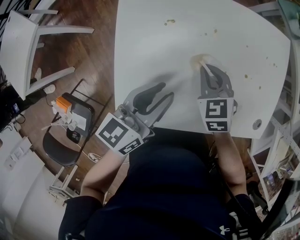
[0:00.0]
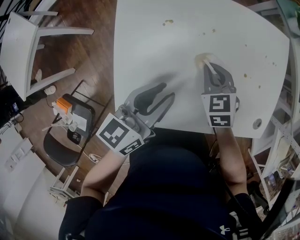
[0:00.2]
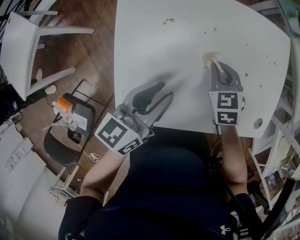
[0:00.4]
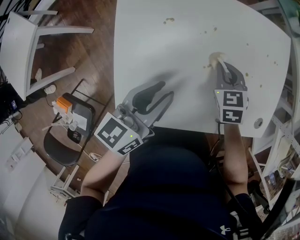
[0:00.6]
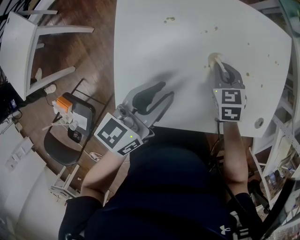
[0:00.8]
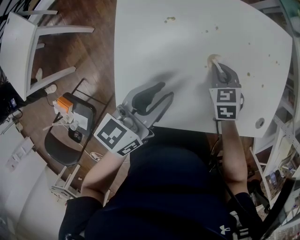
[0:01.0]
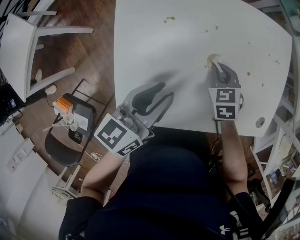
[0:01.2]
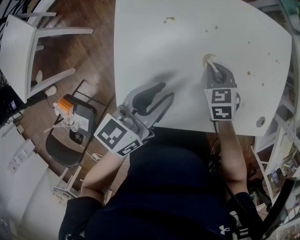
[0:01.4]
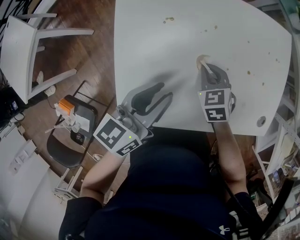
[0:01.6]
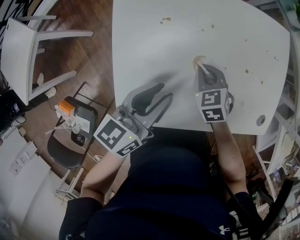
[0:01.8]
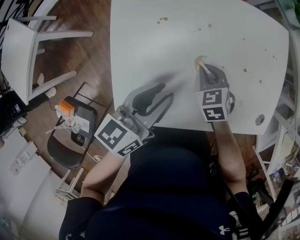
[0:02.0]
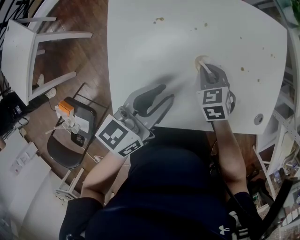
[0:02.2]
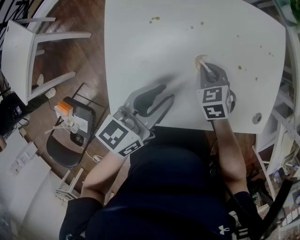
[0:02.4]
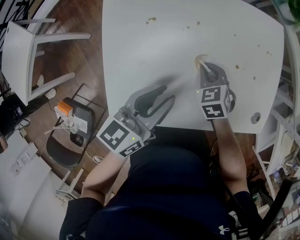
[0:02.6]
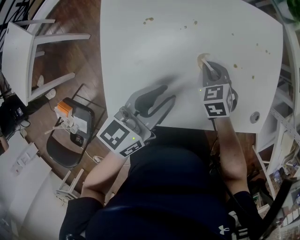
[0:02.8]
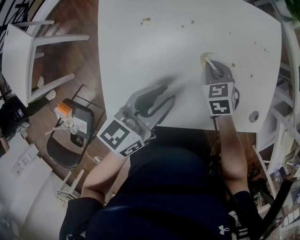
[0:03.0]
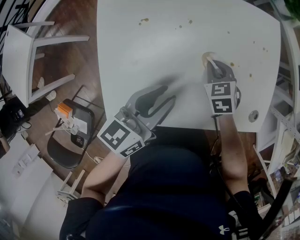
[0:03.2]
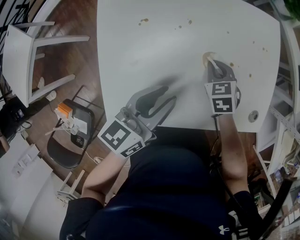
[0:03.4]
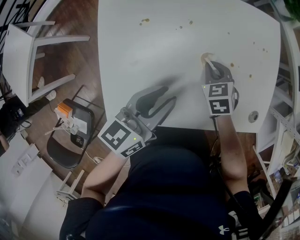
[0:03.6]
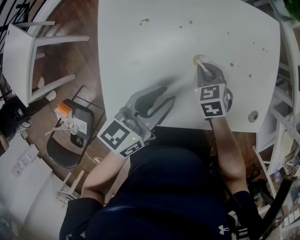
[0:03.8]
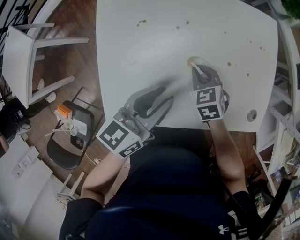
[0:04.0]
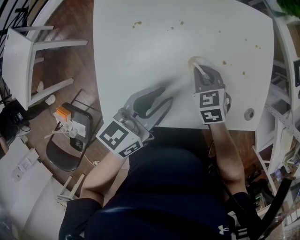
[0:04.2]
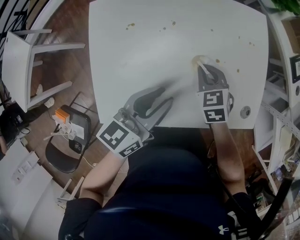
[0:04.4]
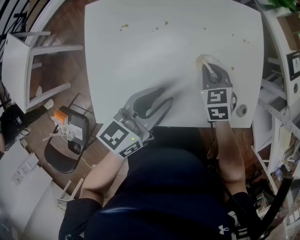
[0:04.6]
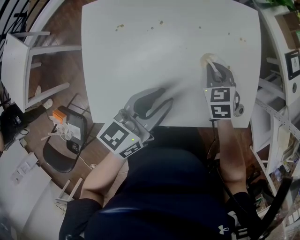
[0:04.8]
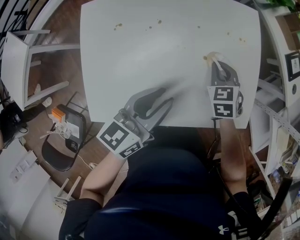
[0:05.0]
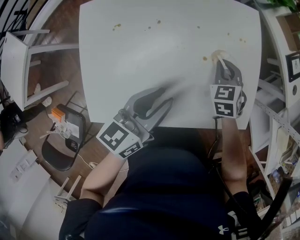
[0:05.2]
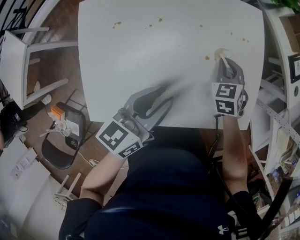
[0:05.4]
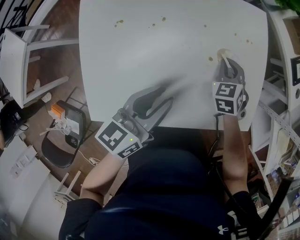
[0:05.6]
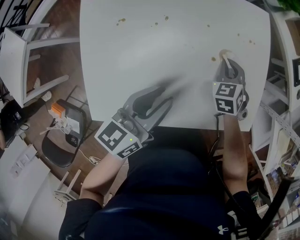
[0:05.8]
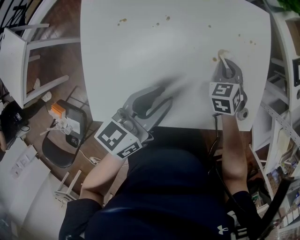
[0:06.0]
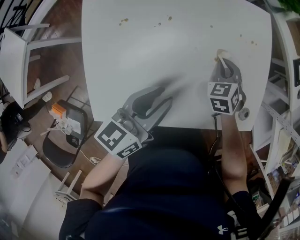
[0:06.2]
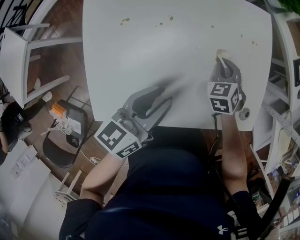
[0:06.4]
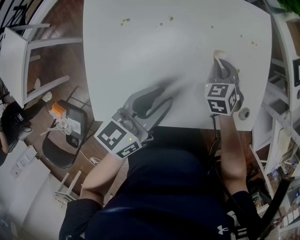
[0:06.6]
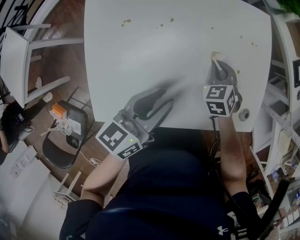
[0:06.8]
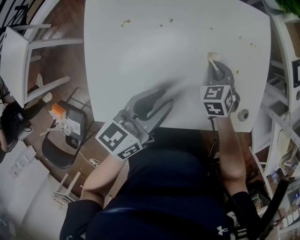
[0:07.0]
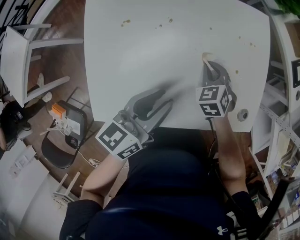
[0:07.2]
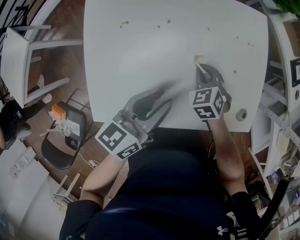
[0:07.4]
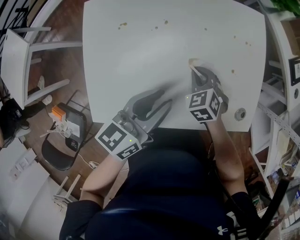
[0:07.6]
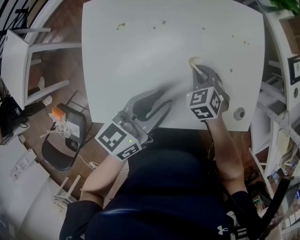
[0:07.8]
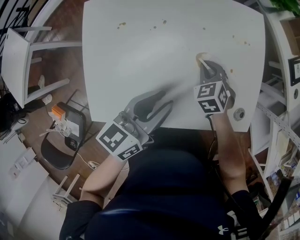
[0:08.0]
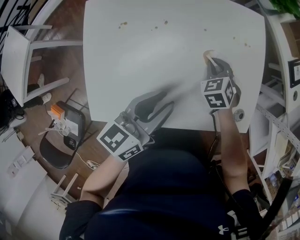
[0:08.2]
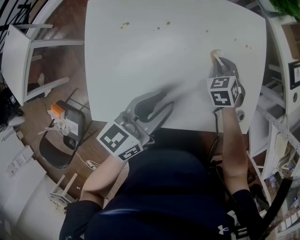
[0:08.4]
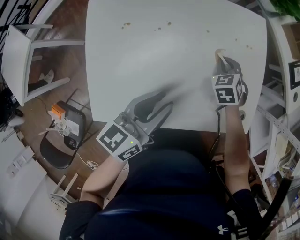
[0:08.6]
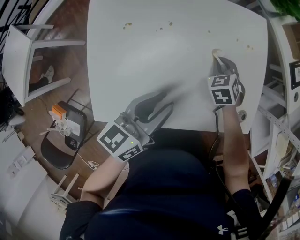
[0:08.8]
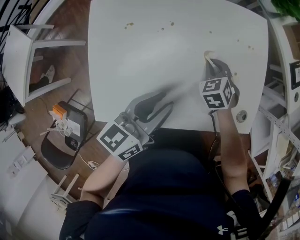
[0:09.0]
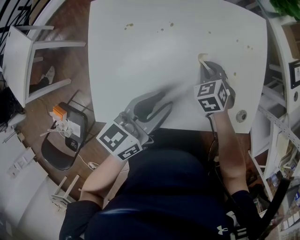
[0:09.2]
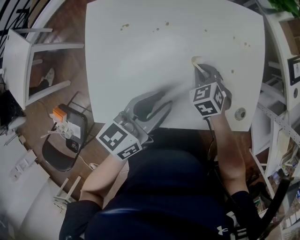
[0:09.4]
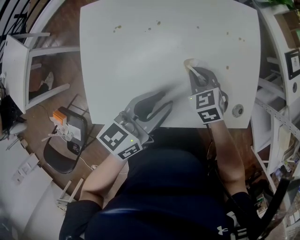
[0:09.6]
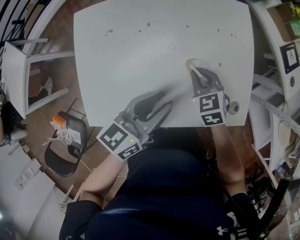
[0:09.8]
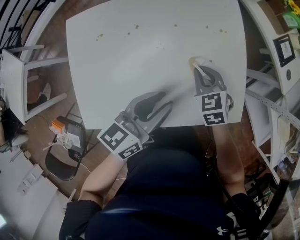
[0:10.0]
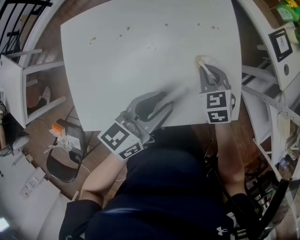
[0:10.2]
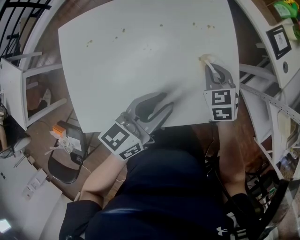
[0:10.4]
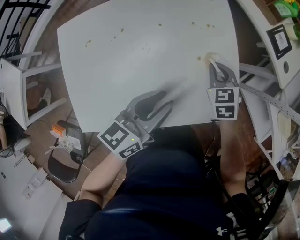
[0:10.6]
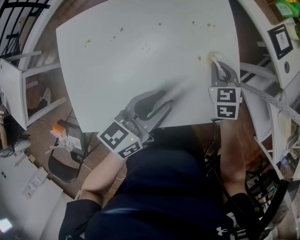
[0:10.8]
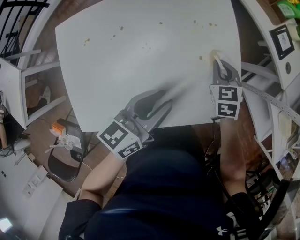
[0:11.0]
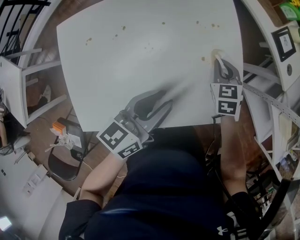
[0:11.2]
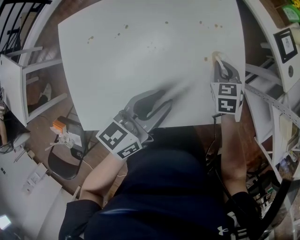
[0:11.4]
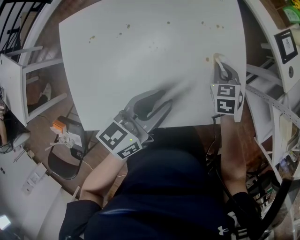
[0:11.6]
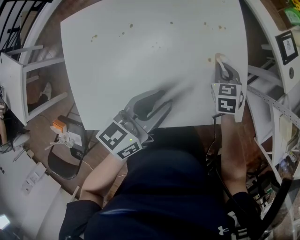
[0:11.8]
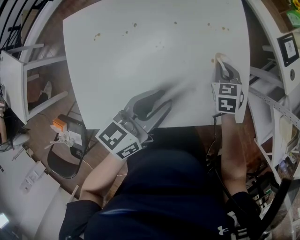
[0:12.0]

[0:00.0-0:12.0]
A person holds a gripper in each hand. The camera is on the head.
0:00.0 to 0:01.6: The right gripper travels downward by approximately 5 cm.
0:01.6 to 0:03.0: The two grippers go approximately 10 cm to the right.
0:03.0 to 0:04.4: The grippers make only small movements.
0:04.4 to 0:06.0: The right gripper heads to the right and forward, covering some 10 cm.
0:06.0 to 0:07.6: The right gripper is displaced backward and to the left by roughly 10 cm.
0:07.6 to 0:09.0: The right gripper moves forward, about 5 cm.
0:09.0 to 0:10.4: Both grippers travel together to the right, about 15 cm. The right gripper changes its angle by about 20 degrees.
0:10.4 to 0:12.0: The grippers stay close to where they were, moving slightly.

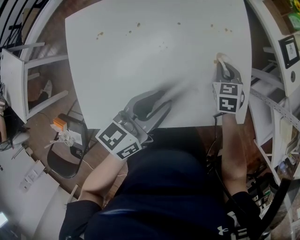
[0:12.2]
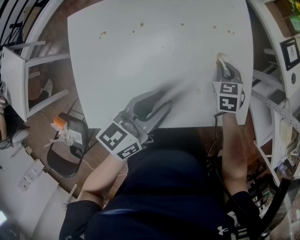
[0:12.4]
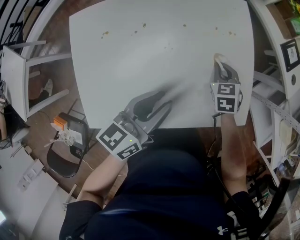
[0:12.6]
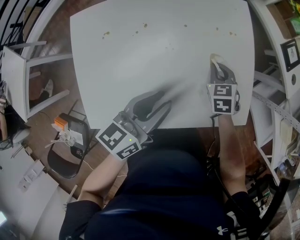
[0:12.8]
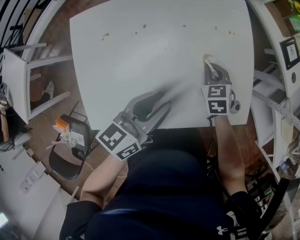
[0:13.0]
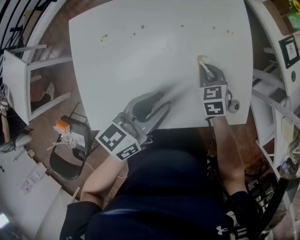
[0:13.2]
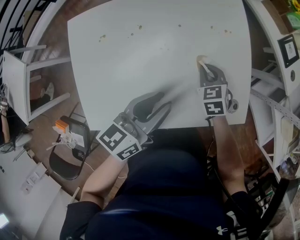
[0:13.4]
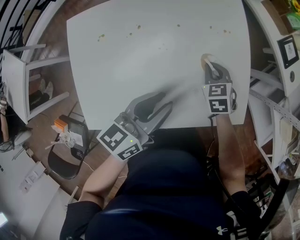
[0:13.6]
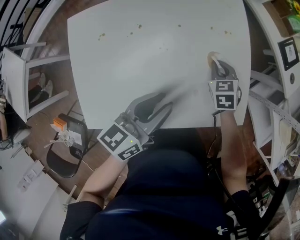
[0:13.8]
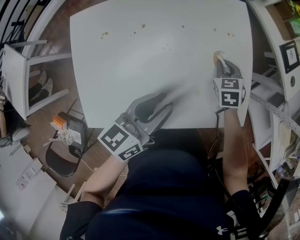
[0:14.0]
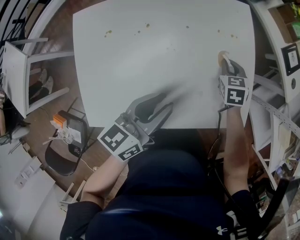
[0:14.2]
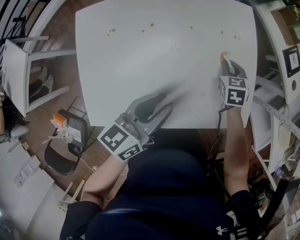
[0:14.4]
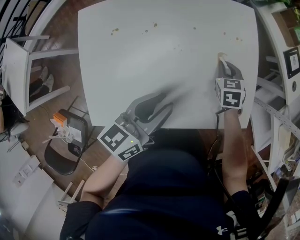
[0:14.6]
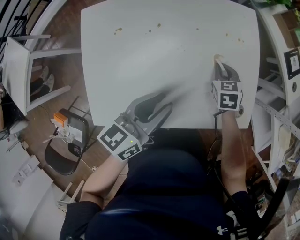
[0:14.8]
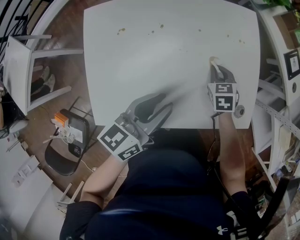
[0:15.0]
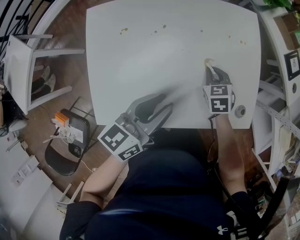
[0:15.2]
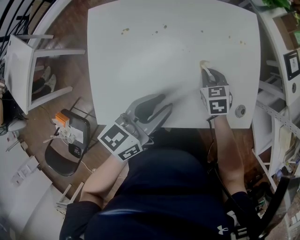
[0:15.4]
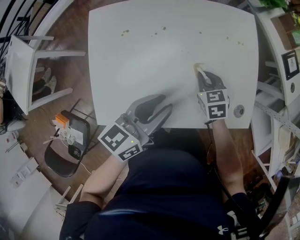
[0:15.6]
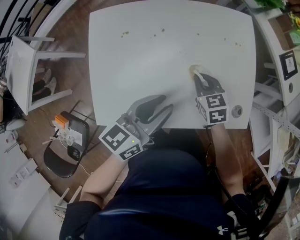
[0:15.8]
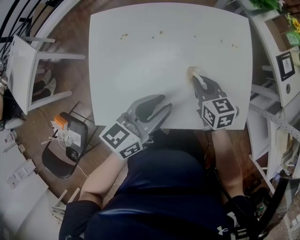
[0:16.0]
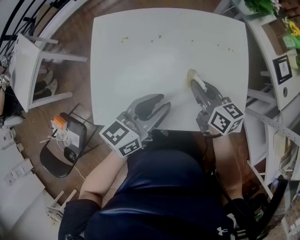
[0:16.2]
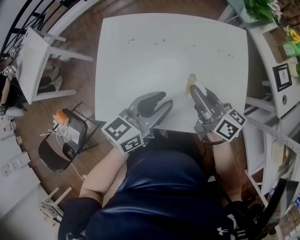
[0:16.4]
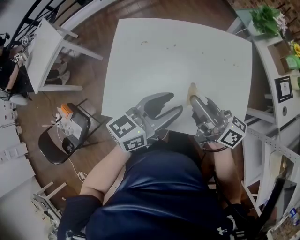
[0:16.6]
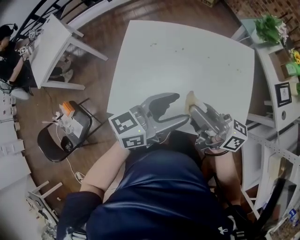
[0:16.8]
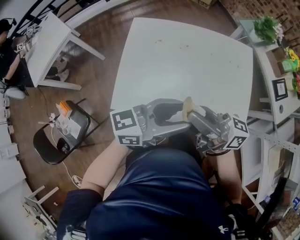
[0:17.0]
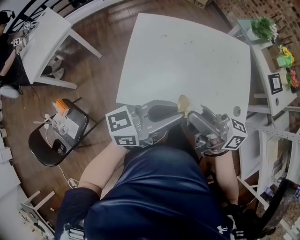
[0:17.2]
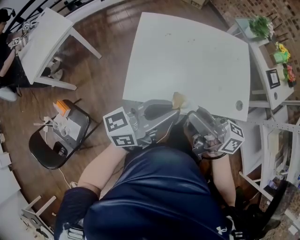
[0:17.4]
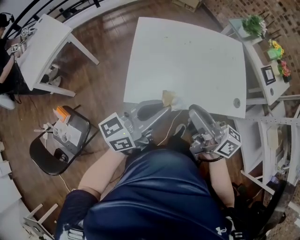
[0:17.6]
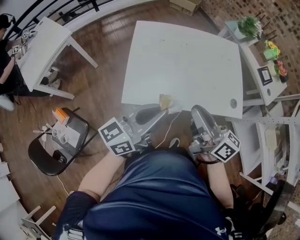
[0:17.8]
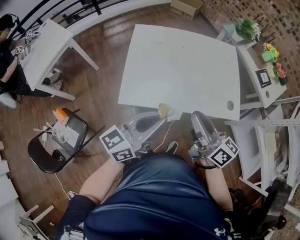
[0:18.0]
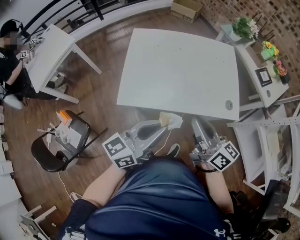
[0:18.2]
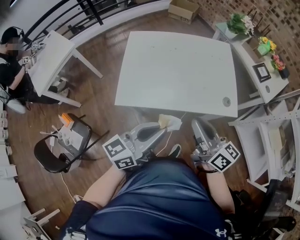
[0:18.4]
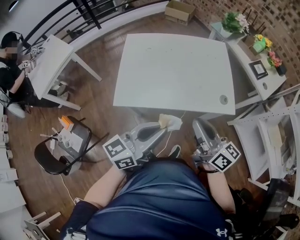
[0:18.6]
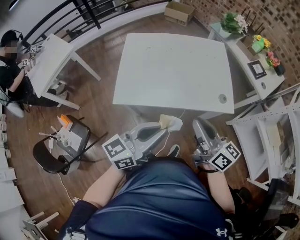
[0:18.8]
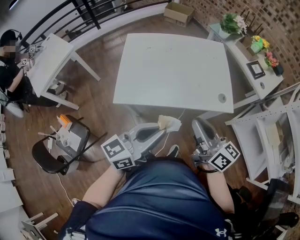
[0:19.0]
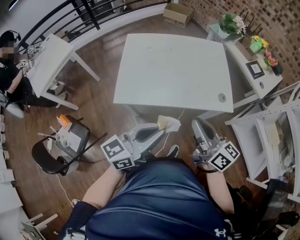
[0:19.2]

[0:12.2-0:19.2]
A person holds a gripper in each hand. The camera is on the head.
0:13.6 to 0:15.0: The left gripper goes about 5 cm to the left.
0:15.0 to 0:16.4: The right gripper is displaced upward by about 20 cm, and tips its fingers upward by some 50 degrees. The left gripper shifts by about 5 cm.
0:16.4 to 0:17.8: The left gripper shifts by some 30 cm, rotates some 20 degrees, and closes. The right gripper changes place by roughly 30 cm.
0:17.8 to 0:19.2: Both grippers move to the right and backward, about 15 cm.

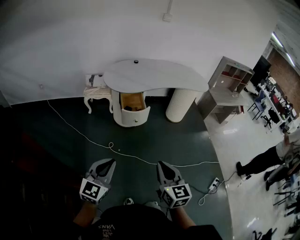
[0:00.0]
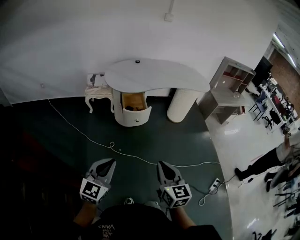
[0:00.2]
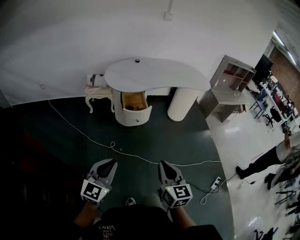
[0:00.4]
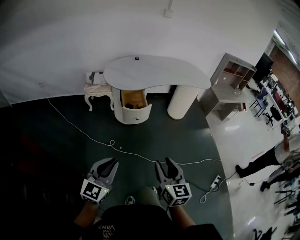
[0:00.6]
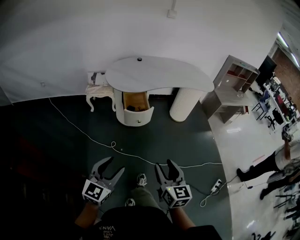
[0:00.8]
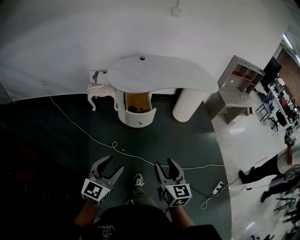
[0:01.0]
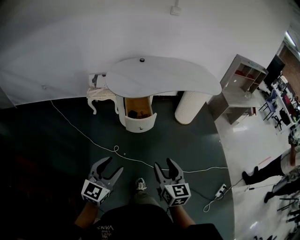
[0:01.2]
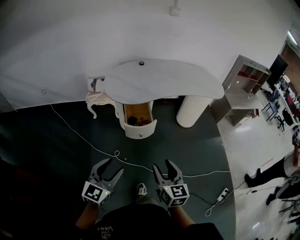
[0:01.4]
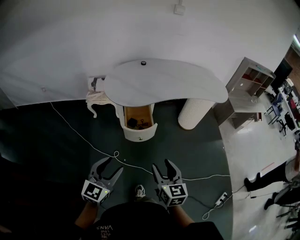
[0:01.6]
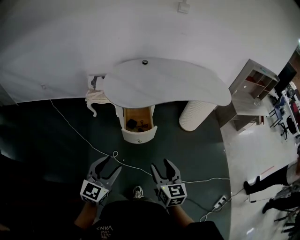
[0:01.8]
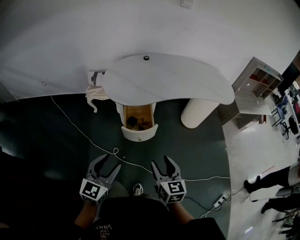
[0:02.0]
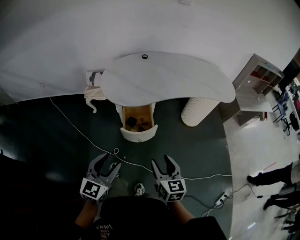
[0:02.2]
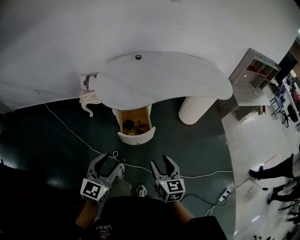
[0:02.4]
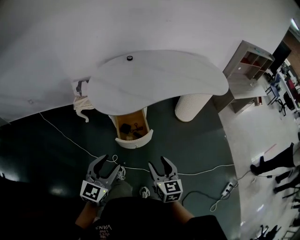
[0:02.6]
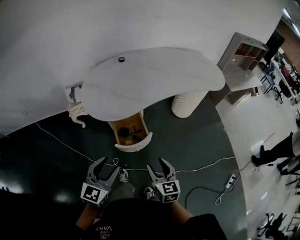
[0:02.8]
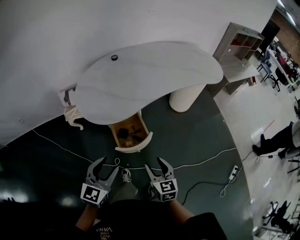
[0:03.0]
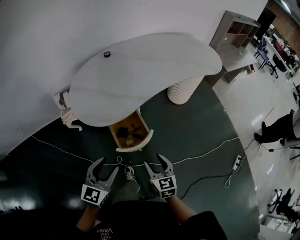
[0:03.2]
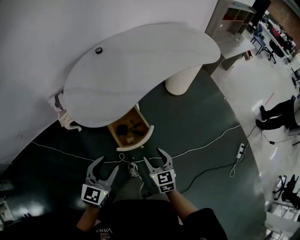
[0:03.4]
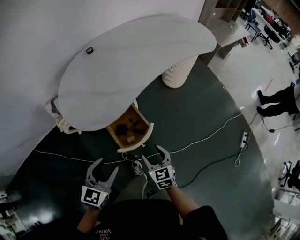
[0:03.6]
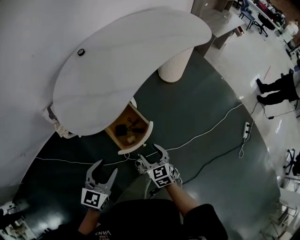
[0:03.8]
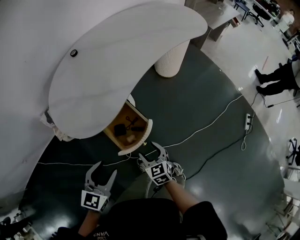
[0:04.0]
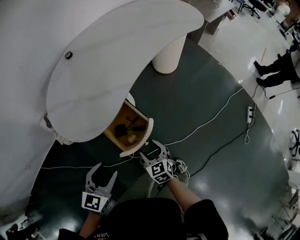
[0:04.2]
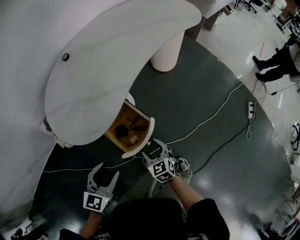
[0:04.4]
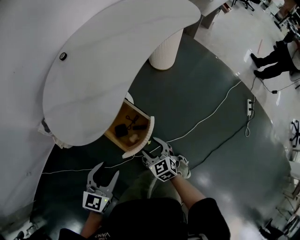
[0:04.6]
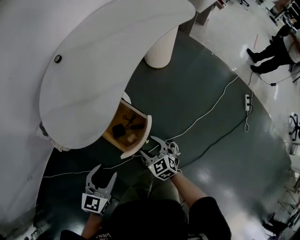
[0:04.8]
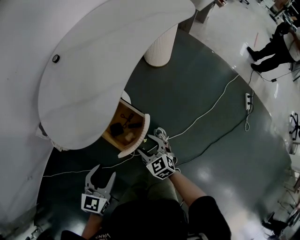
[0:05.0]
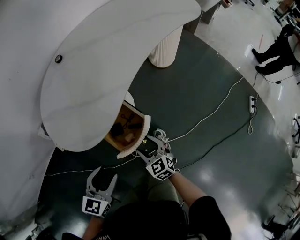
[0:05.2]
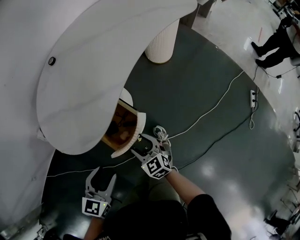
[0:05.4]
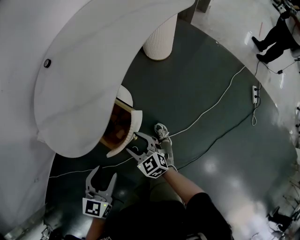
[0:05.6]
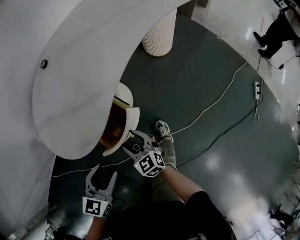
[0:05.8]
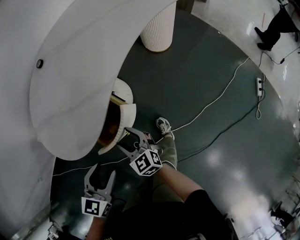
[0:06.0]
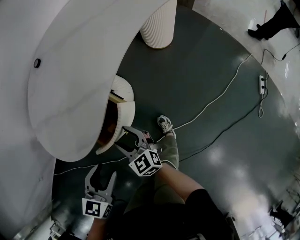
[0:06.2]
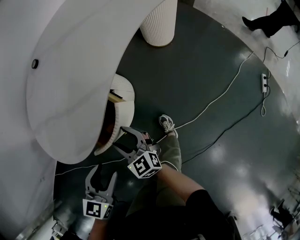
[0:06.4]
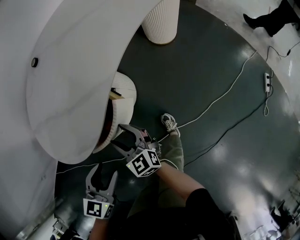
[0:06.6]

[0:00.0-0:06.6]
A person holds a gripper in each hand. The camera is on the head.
0:00.0 to 0:01.6: The two grippers go approximately 25 cm forward. The left gripper opens up, while the right gripper opens up.
0:01.6 to 0:03.2: The right gripper moves forward and downward, roughly 25 cm; the left gripper goes about 25 cm forward.
0:03.2 to 0:05.0: The right gripper shifts about 15 cm downward, to the left and forward. The left gripper is displaced downward, forward and to the left by approximately 10 cm, and rotates some 20 degrees.
0:05.0 to 0:06.6: The left gripper is displaced forward and downward by about 10 cm. The right gripper moves forward and to the left, about 15 cm.
